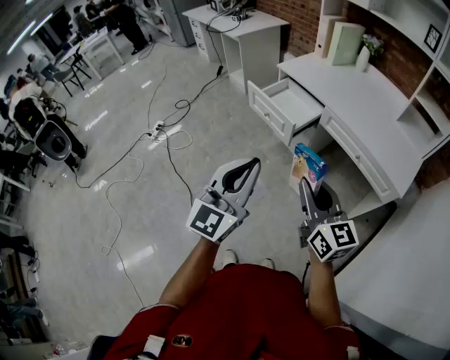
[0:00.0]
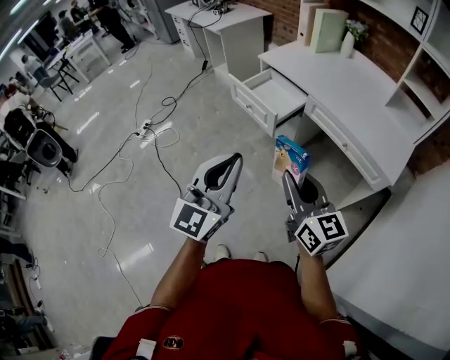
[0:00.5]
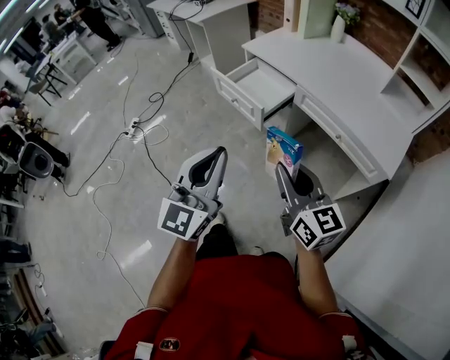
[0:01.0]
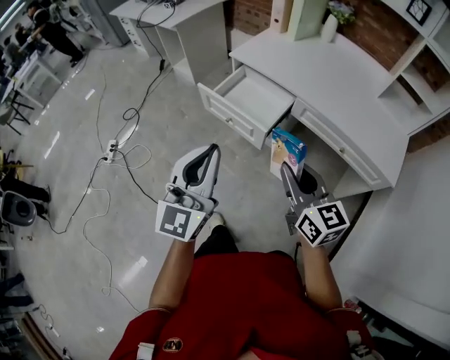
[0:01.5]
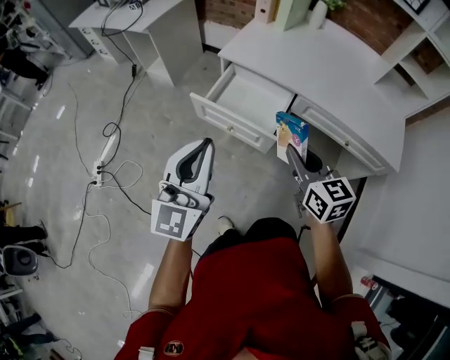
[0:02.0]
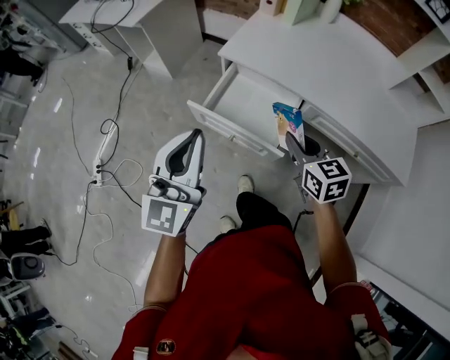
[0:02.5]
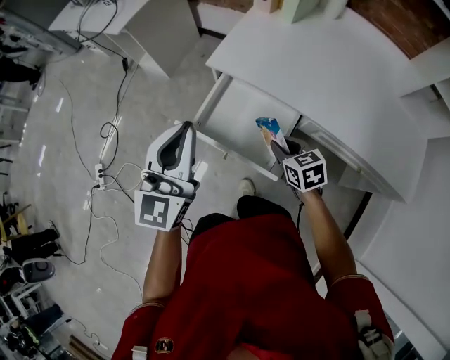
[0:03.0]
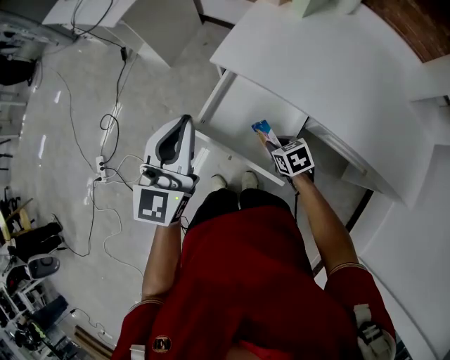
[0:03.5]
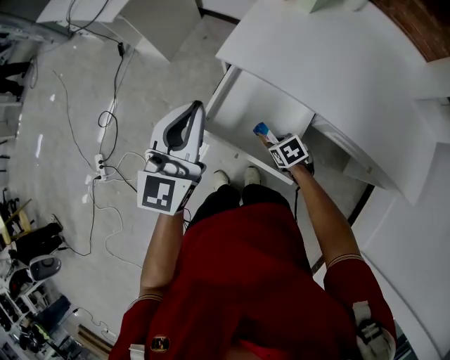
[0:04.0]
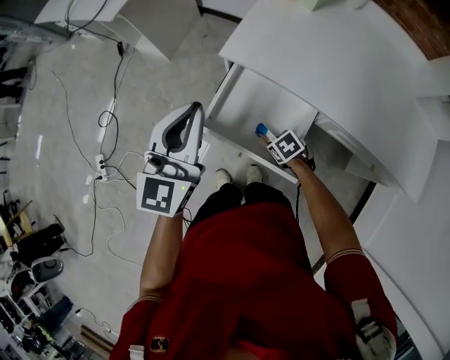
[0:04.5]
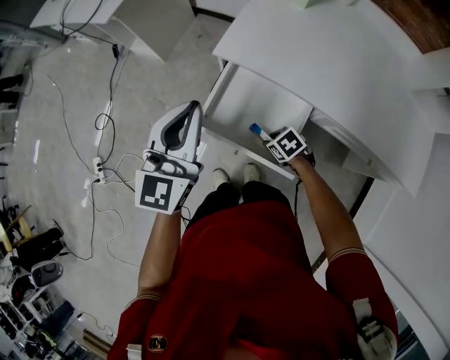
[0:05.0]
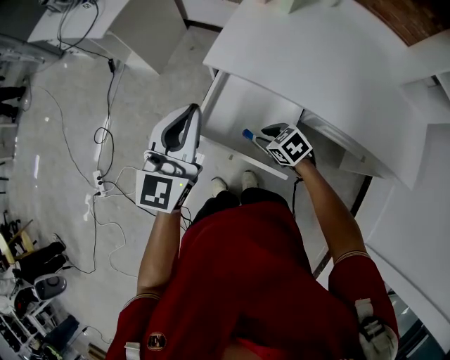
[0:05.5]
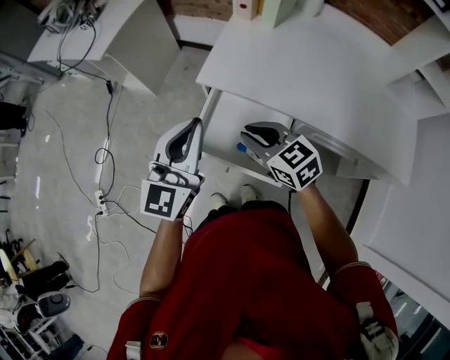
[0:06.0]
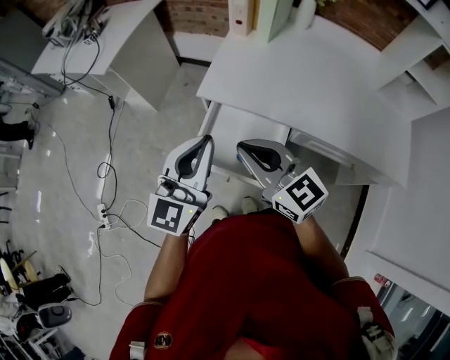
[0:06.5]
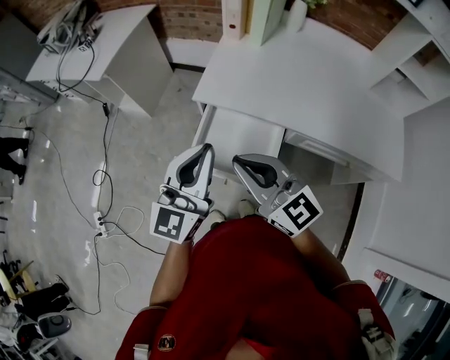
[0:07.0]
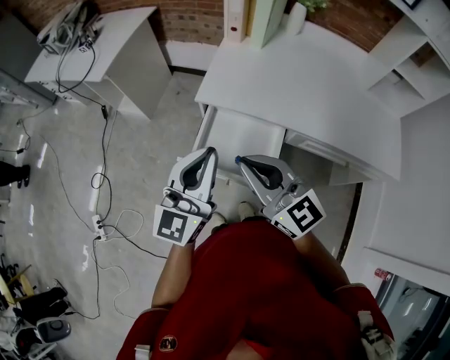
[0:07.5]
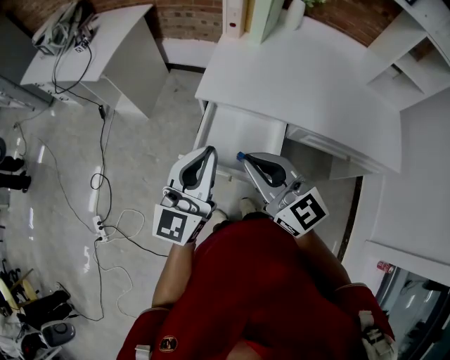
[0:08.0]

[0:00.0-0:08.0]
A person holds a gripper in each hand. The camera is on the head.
0:00.0 to 0:02.0: The left gripper travels forward and to the left by about 40 cm; the right gripper shifts approximately 35 cm forward, and swivels roughly 30 degrees.
0:02.0 to 0:04.0: The left gripper travels forward by about 30 cm. The right gripper shifts roughly 40 cm downward and forward, and tips its fingers downward by roughly 50 degrees.
0:04.0 to 0:06.0: The right gripper goes roughly 25 cm upward, and tips its fingers upward by some 40 degrees.
0:06.0 to 0:08.0: The right gripper travels upward and backward by roughly 15 cm, and changes its angle by approximately 30 degrees. The left gripper is displaced backward by roughly 5 cm.

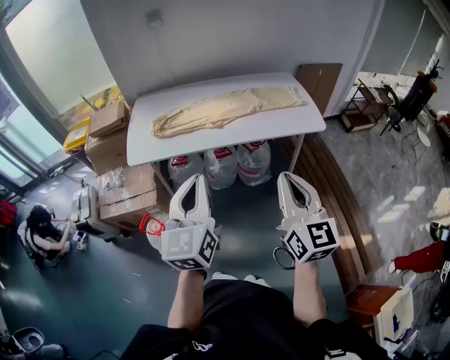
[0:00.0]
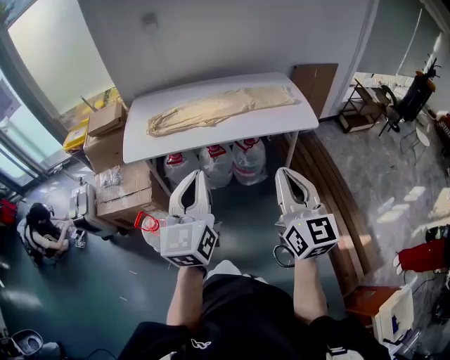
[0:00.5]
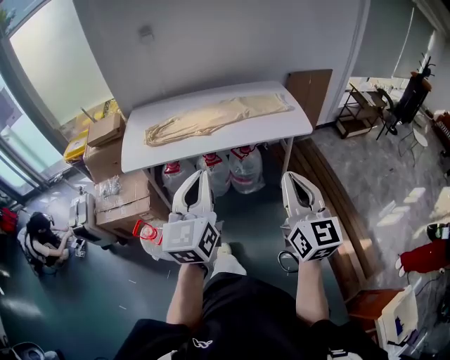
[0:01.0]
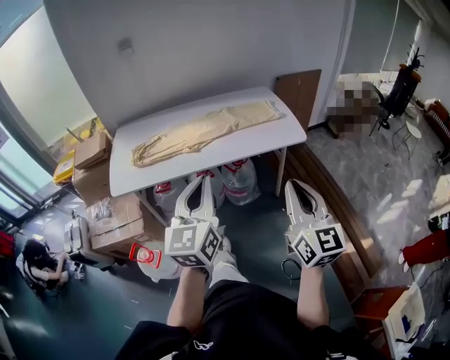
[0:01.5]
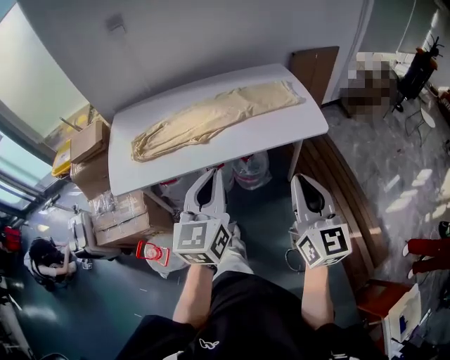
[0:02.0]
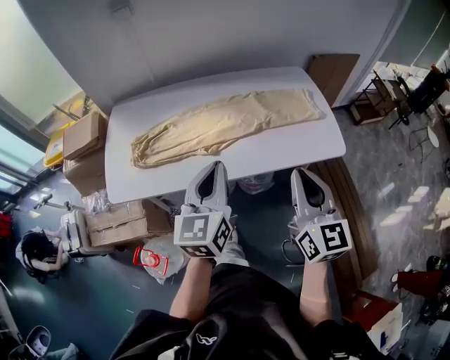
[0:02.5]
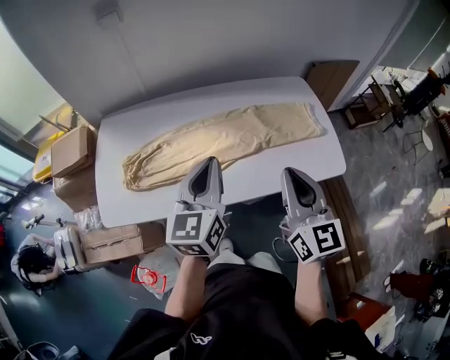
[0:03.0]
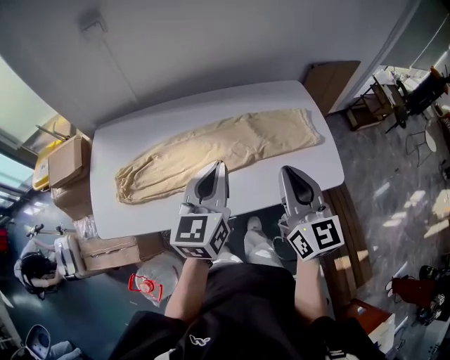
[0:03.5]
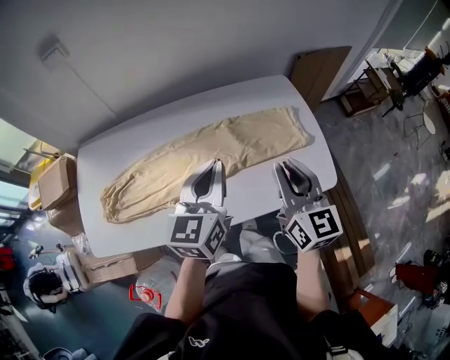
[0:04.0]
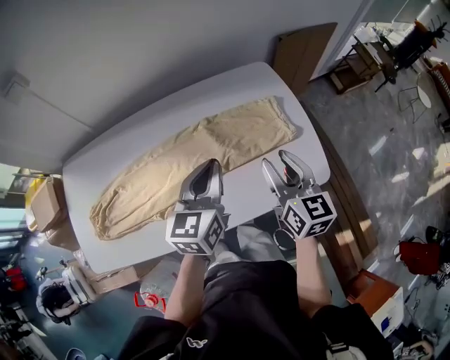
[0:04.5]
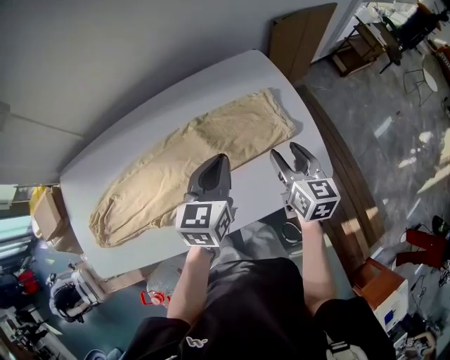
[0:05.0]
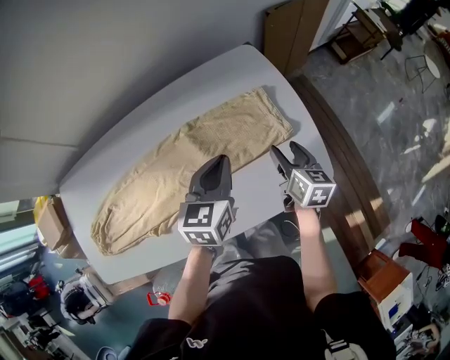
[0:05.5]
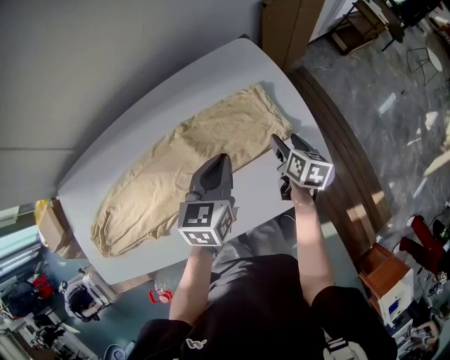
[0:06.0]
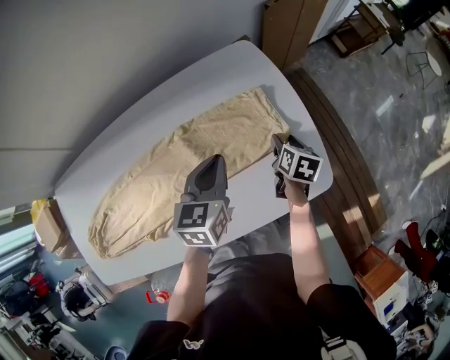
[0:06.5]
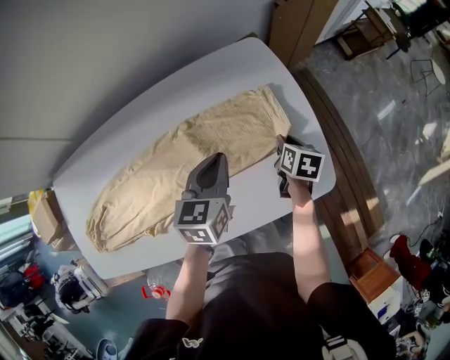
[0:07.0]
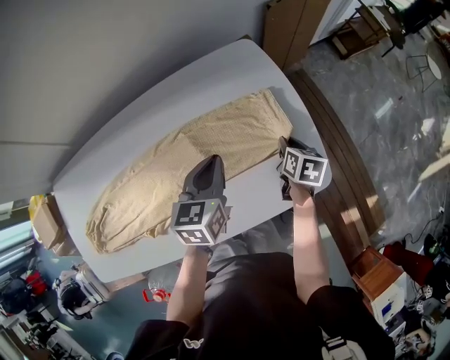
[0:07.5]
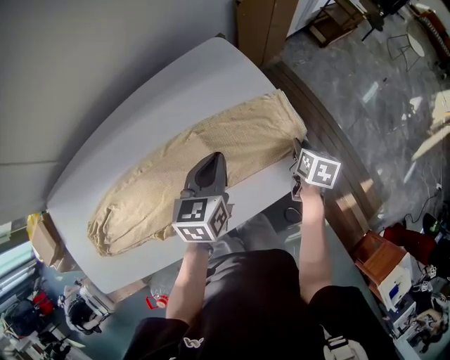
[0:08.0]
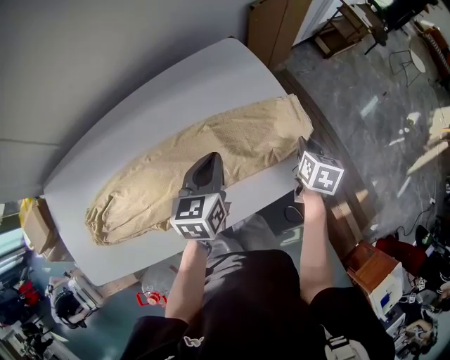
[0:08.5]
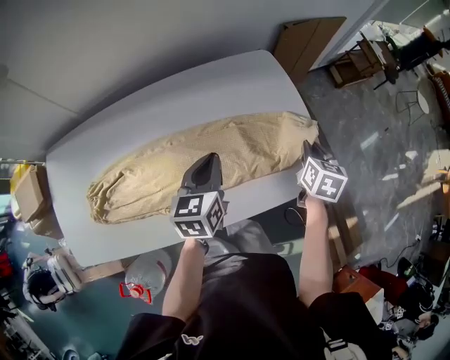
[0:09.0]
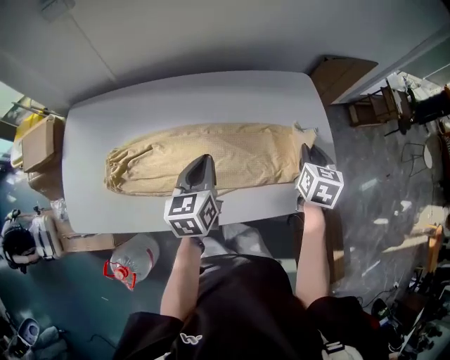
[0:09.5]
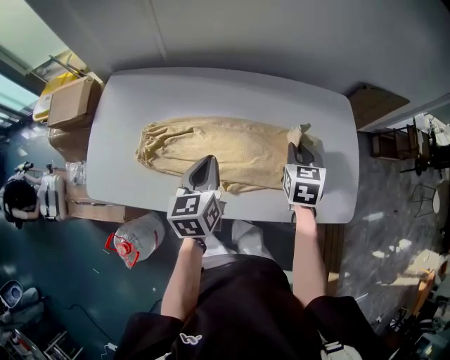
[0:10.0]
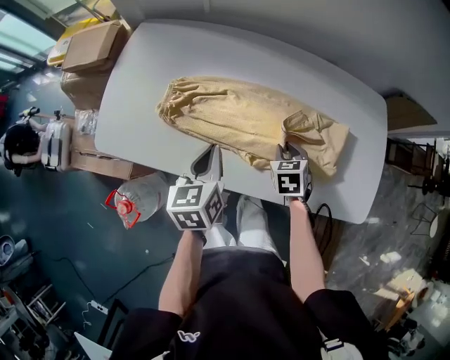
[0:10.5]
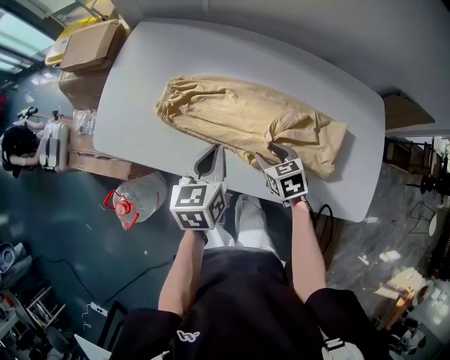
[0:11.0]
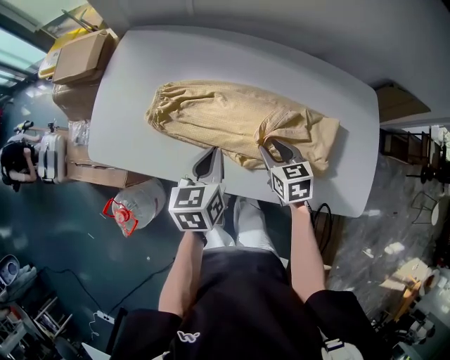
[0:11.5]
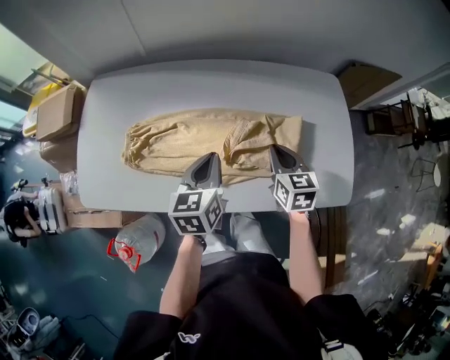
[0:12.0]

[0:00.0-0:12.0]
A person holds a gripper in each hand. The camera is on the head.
0:00.0 to 0:02.0: The two grippers go about 20 cm forward and to the right.
0:02.0 to 0:04.0: Both grippers move forward, roughly 40 cm.
0:04.0 to 0:06.0: The right gripper shifts some 40 cm downward, to the right and forward, tilts its fingers about 40 degrees downward, and opens up; the left gripper is displaced downward, forward and to the right by approximately 25 cm, and rotates some 20 degrees.
0:06.0 to 0:08.0: The right gripper travels to the right by about 10 cm, and closes up.
0:08.0 to 0:10.0: The left gripper ends up approximately 40 cm from where it was, and turns by approximately 40 degrees; the right gripper changes place by about 40 cm, and twists approximately 50 degrees counterclockwise, seen from behind.
0:10.0 to 0:12.0: The right gripper travels downward and back again, some 15 cm each way, and opens, then closes once more.

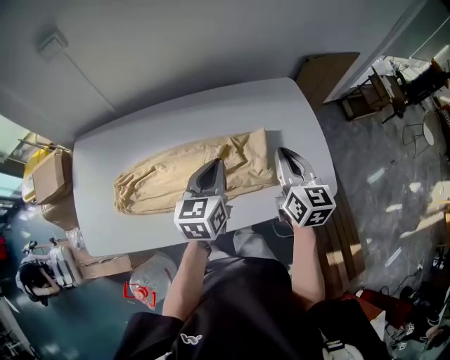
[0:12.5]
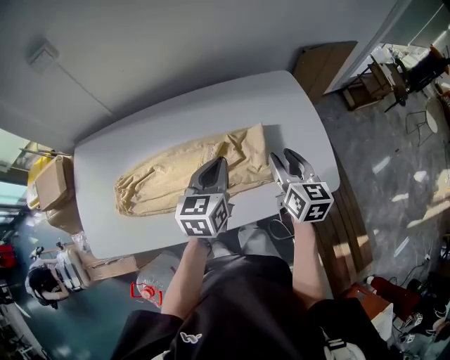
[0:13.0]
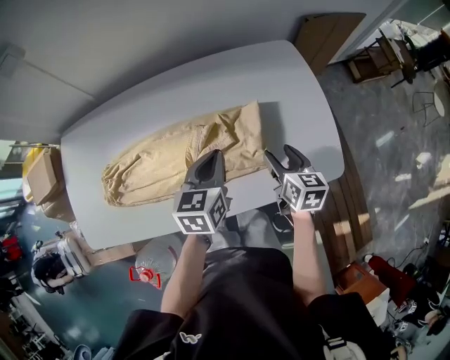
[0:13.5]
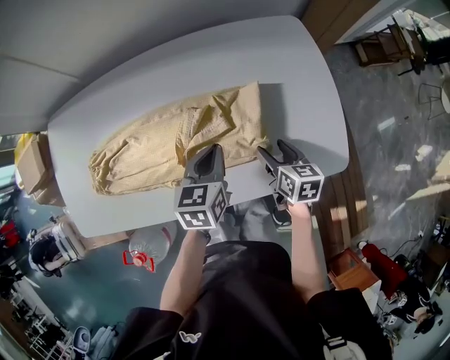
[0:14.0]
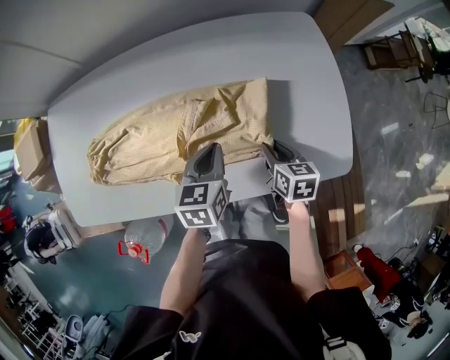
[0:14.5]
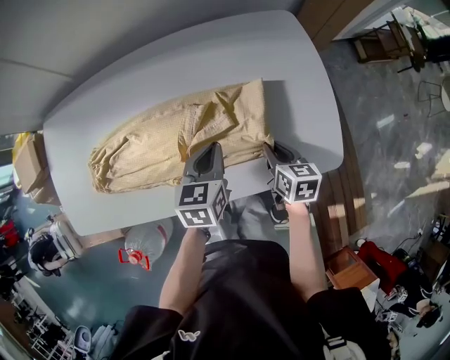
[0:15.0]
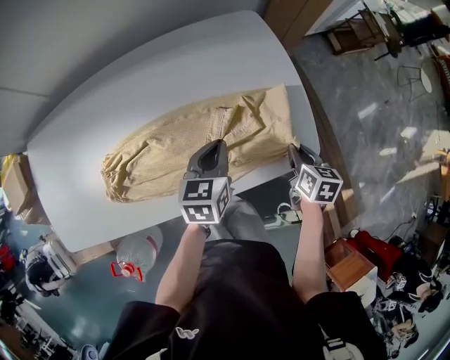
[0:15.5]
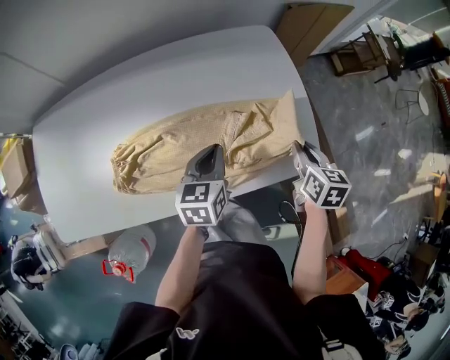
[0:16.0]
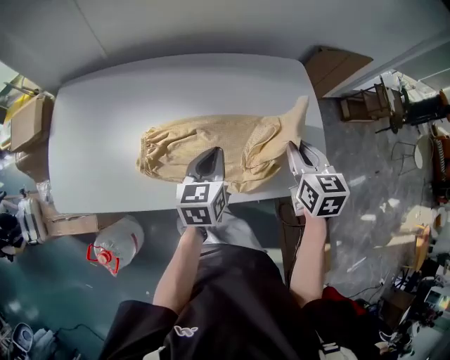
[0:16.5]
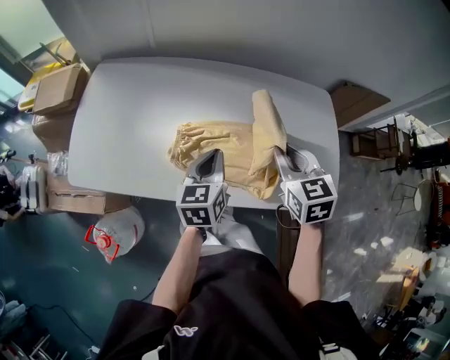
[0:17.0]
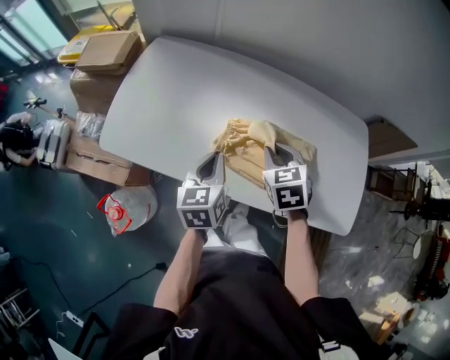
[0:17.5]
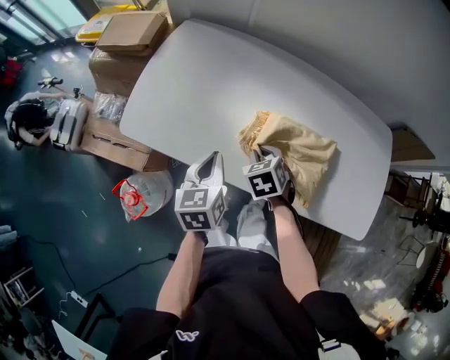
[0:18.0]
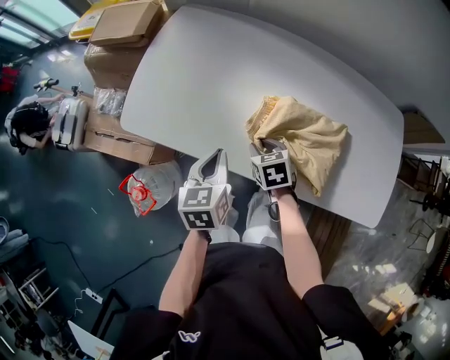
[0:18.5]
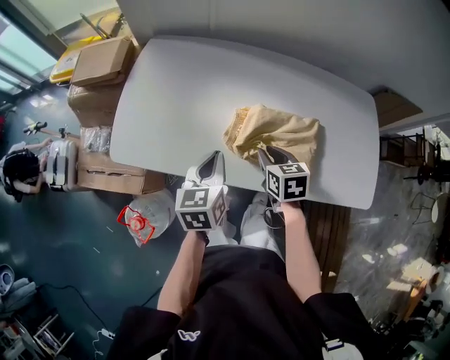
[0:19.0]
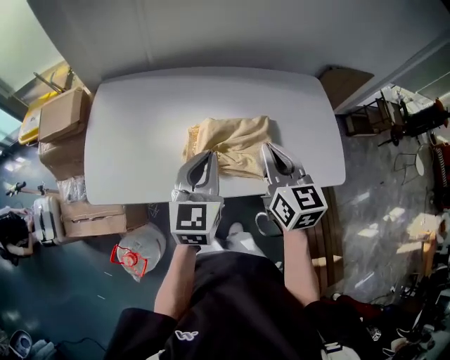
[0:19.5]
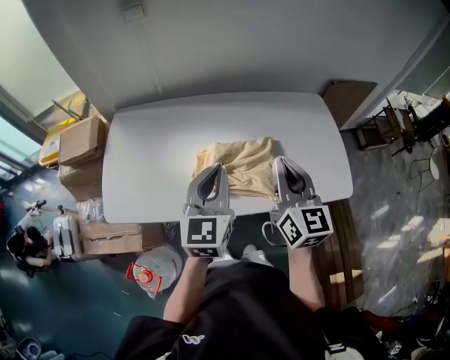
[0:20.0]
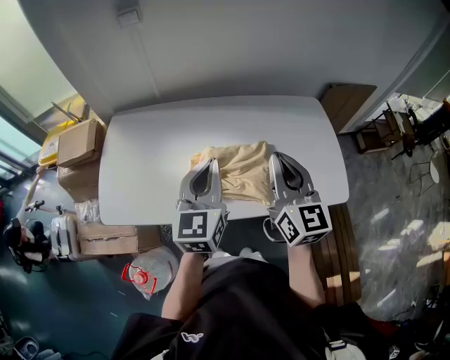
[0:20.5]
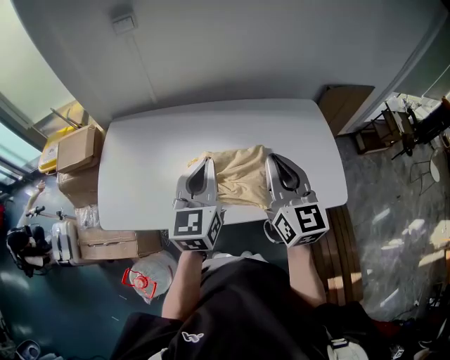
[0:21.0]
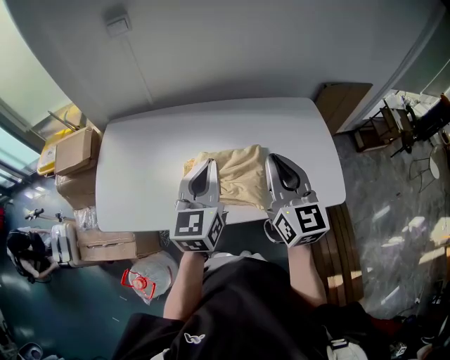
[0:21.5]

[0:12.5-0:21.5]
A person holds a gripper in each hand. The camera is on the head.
0:12.5 to 0:14.5: The left gripper heads downward, covering roughly 15 cm. Meanwhile the right gripper heads downward, covering roughly 25 cm, angles its fingers downward, by approximately 30 degrees, and opens.
0:14.5 to 0:17.0: The right gripper is displaced upward by some 25 cm, and swivels about 40 degrees. Meanwhile the left gripper shifts by roughly 15 cm, and changes its angle by about 20 degrees.
0:17.0 to 0:19.5: The left gripper turns by approximately 20 degrees. Meanwhile the right gripper moves about 25 cm downward and comes back, and turns by some 20 degrees.
0:19.5 to 0:21.5: The grippers both shift upward and to the right by some 10 cm.
